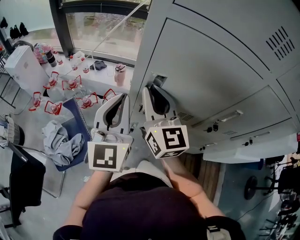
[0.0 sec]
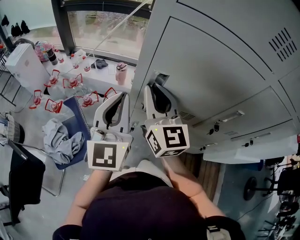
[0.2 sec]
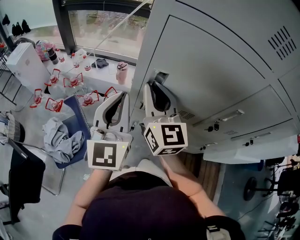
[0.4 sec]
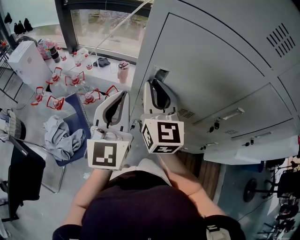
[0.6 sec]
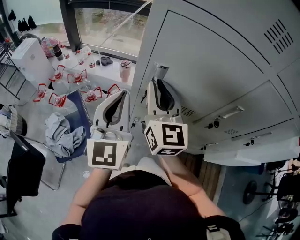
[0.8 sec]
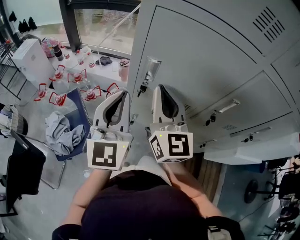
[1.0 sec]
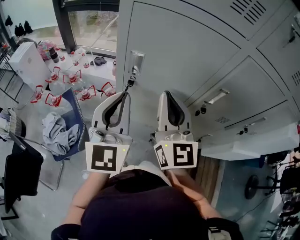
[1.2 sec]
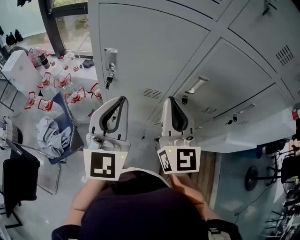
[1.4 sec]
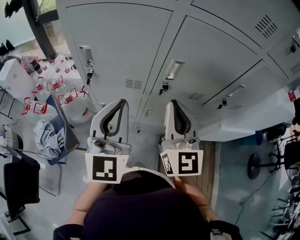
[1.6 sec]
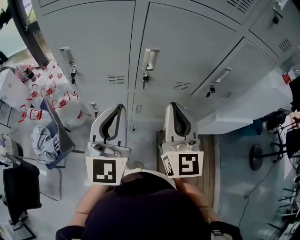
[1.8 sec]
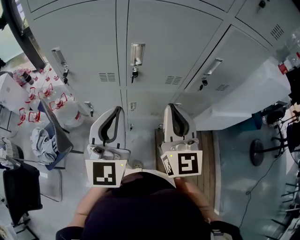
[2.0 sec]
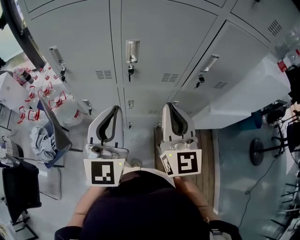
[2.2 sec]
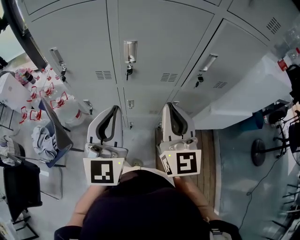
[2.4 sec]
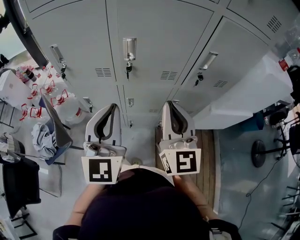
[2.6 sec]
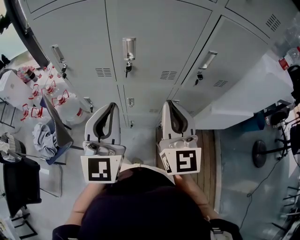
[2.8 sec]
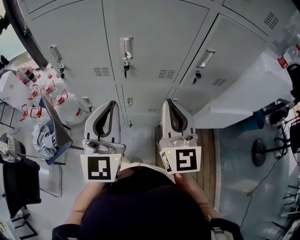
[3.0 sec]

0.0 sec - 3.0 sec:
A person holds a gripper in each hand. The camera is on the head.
0.0 sec - 1.6 sec: Both grippers move to the right and backward, about 30 cm.
1.6 sec - 3.0 sec: The two grippers go about 15 cm to the right and backward.

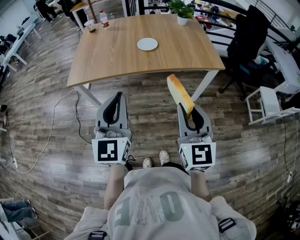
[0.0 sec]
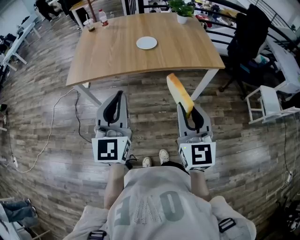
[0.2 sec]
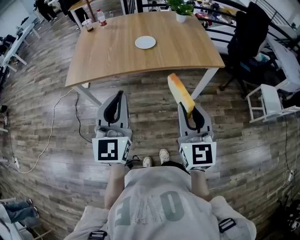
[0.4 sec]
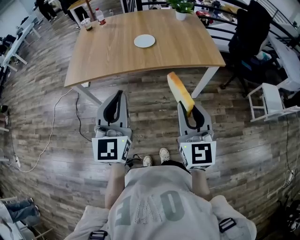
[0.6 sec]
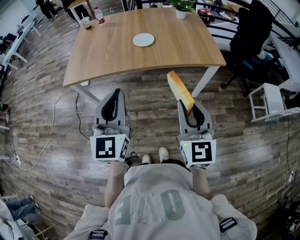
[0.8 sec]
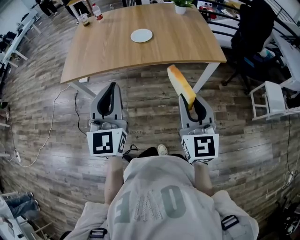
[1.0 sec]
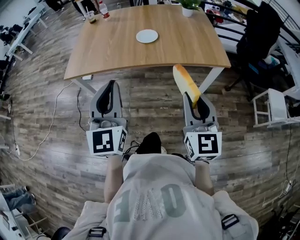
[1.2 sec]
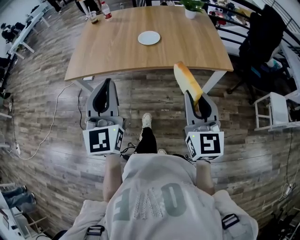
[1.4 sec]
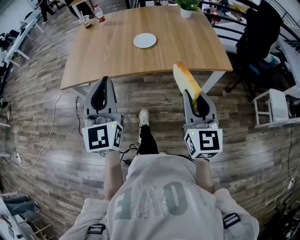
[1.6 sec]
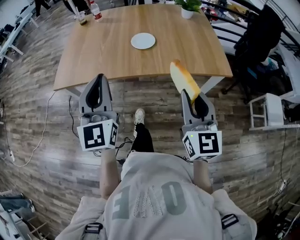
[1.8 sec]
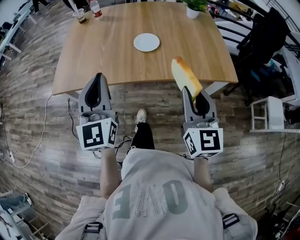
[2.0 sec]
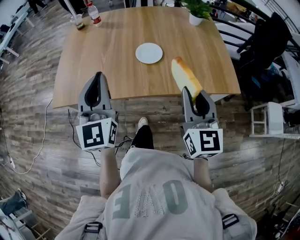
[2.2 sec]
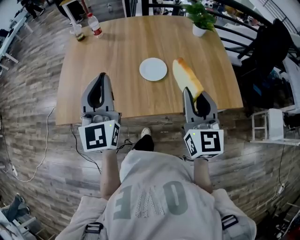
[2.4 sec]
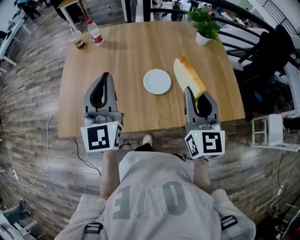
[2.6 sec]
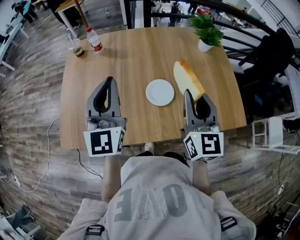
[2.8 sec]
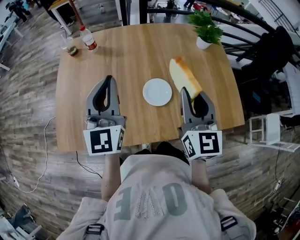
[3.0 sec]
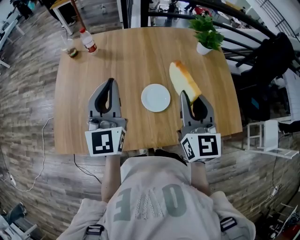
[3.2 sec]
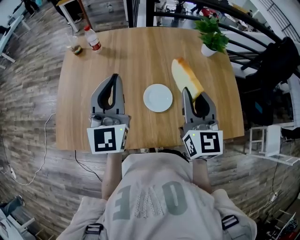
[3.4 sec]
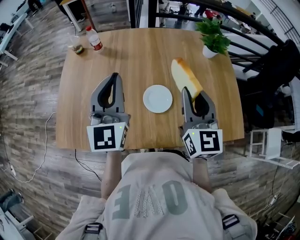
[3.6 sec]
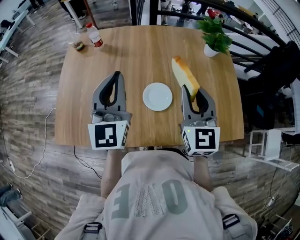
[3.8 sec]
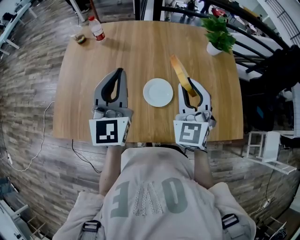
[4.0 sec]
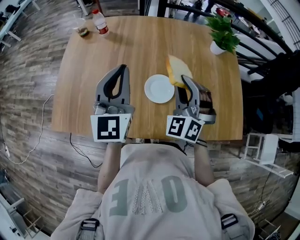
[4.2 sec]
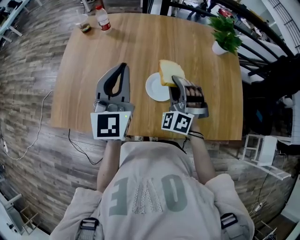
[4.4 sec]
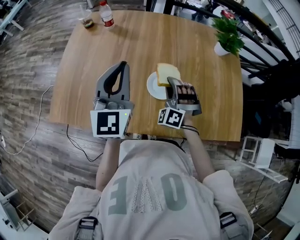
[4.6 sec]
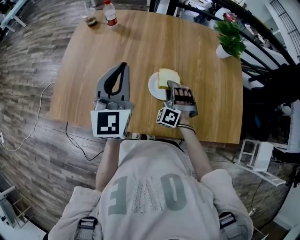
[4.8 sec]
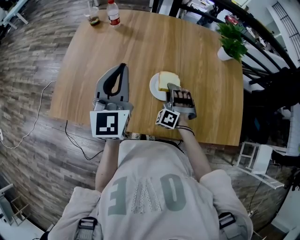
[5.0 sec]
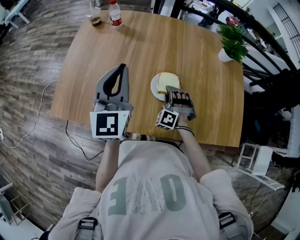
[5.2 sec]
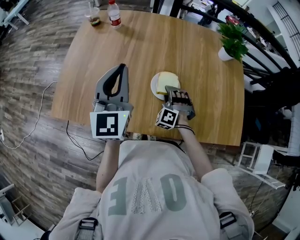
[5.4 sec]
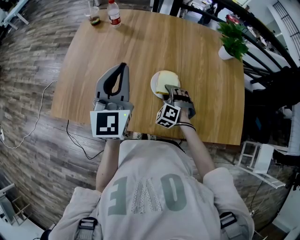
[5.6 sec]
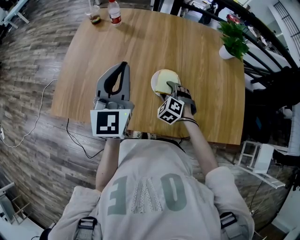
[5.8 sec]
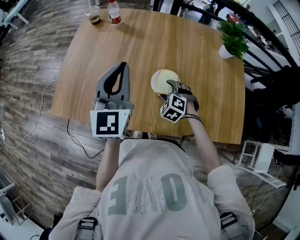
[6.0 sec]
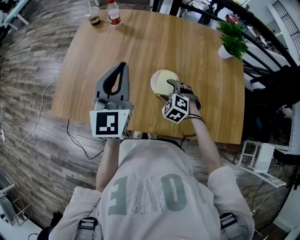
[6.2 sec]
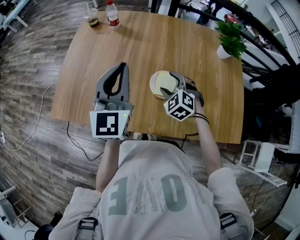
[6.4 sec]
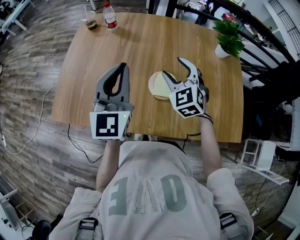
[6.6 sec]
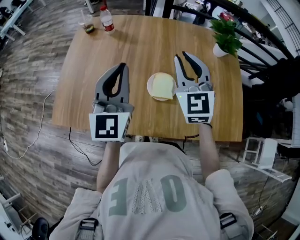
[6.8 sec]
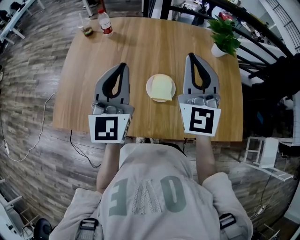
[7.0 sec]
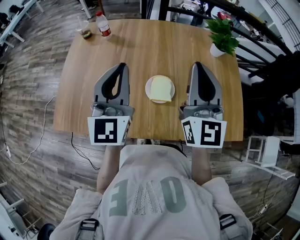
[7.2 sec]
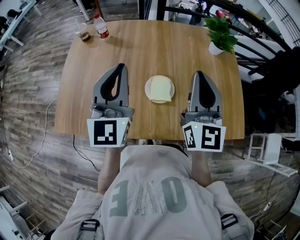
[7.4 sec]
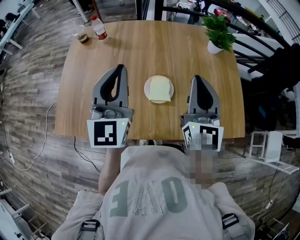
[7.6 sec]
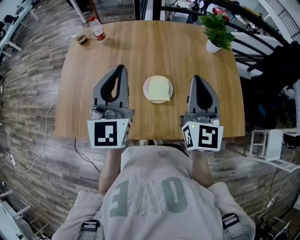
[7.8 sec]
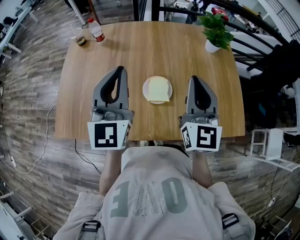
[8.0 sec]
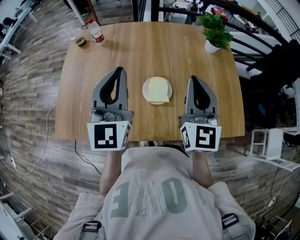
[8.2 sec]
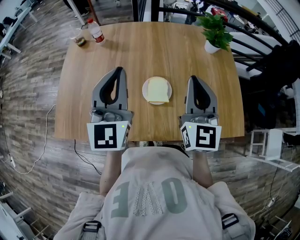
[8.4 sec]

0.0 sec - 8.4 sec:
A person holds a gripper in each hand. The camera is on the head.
0.0 sec - 1.4 sec: The right gripper heads forward and to the right, covering about 10 cm. The left gripper shifts about 5 cm forward.
1.4 sec - 2.8 sec: The pair of grippers is taken forward, approximately 40 cm.
2.8 sec - 4.2 sec: The right gripper moves forward and downward, approximately 10 cm, and twists roughly 60 degrees counterclockwise, seen from behind, while the left gripper changes place by about 5 cm.
4.2 sec - 5.6 sec: The right gripper moves downward, some 20 cm, and changes its angle by about 30 degrees.
5.6 sec - 7.0 sec: The right gripper heads upward, covering approximately 35 cm, angles its fingers upward, by some 50 degrees, and closes its fingers.
7.0 sec - 8.4 sec: The right gripper shifts about 5 cm to the right and downward.

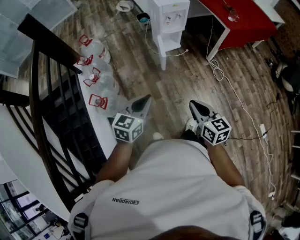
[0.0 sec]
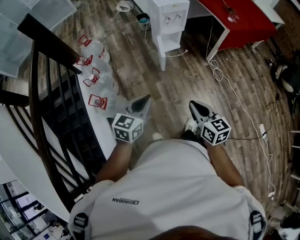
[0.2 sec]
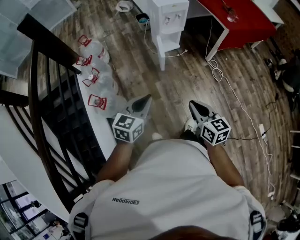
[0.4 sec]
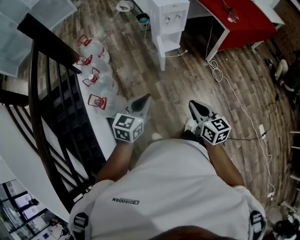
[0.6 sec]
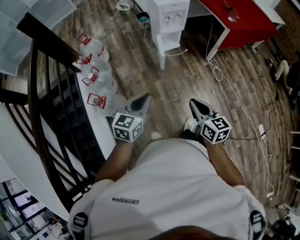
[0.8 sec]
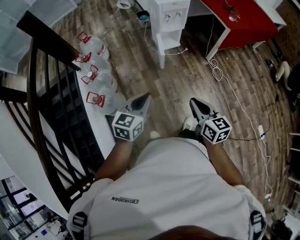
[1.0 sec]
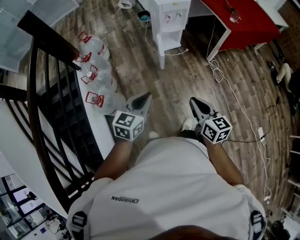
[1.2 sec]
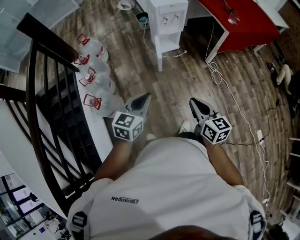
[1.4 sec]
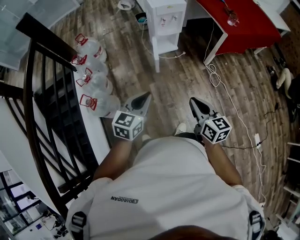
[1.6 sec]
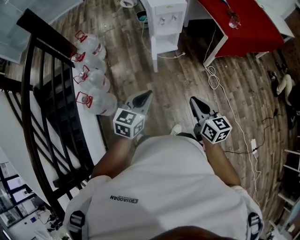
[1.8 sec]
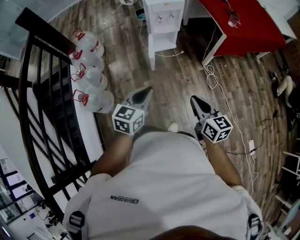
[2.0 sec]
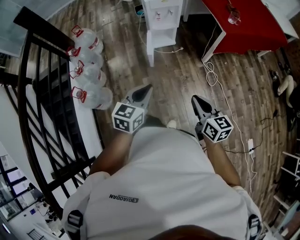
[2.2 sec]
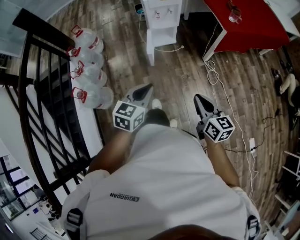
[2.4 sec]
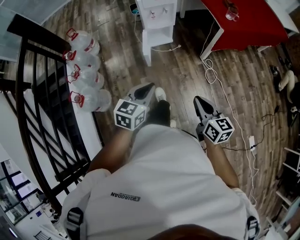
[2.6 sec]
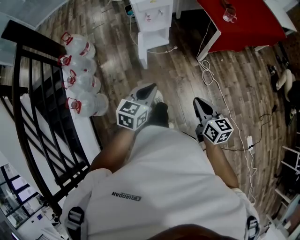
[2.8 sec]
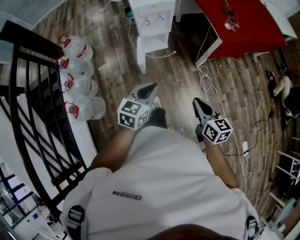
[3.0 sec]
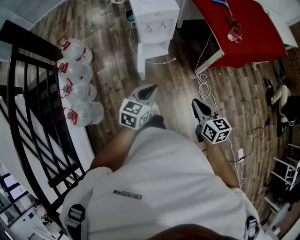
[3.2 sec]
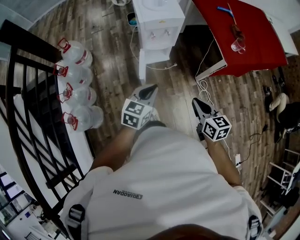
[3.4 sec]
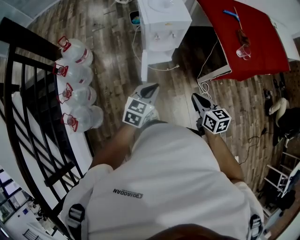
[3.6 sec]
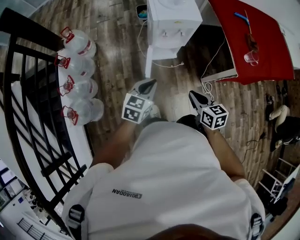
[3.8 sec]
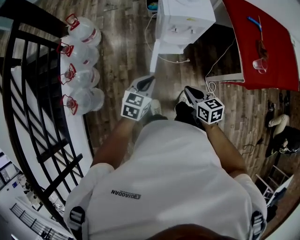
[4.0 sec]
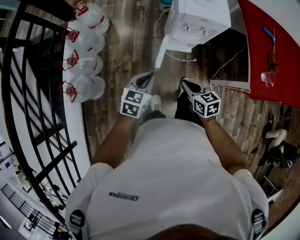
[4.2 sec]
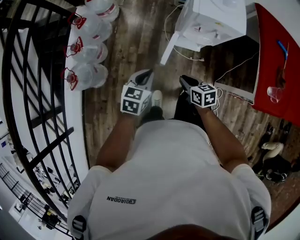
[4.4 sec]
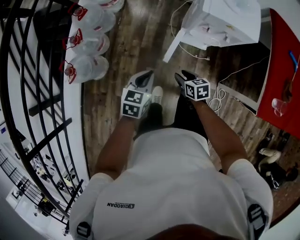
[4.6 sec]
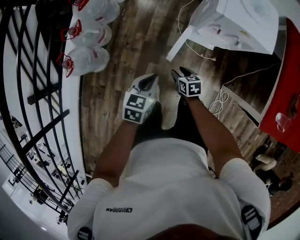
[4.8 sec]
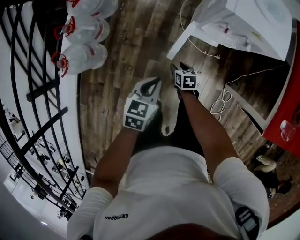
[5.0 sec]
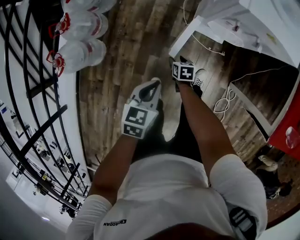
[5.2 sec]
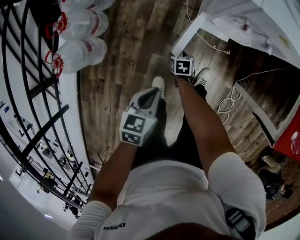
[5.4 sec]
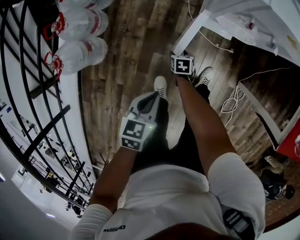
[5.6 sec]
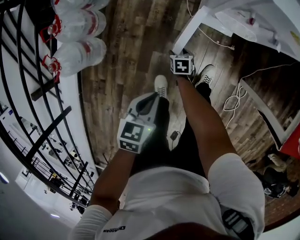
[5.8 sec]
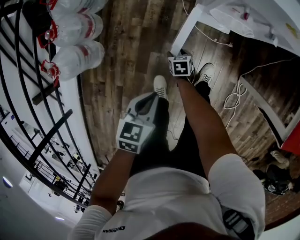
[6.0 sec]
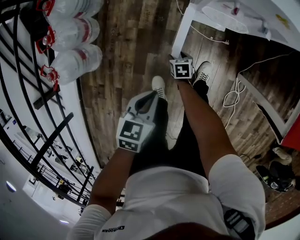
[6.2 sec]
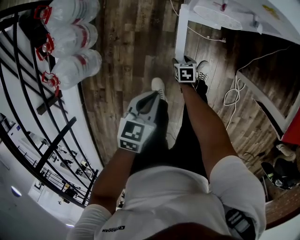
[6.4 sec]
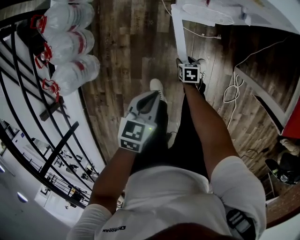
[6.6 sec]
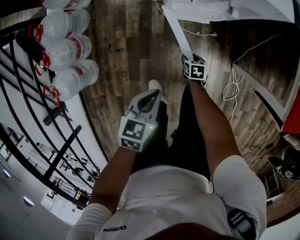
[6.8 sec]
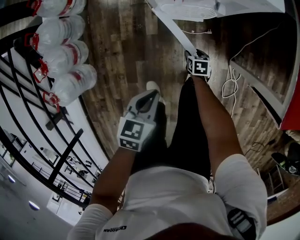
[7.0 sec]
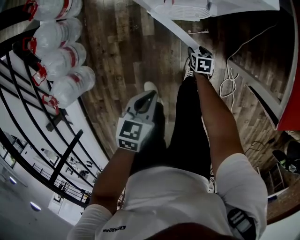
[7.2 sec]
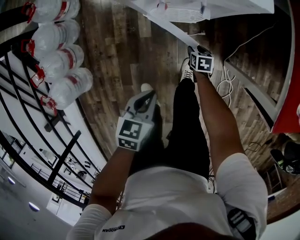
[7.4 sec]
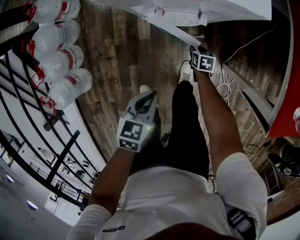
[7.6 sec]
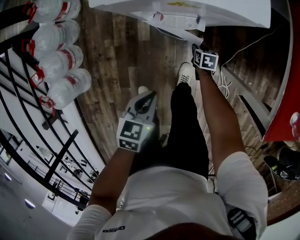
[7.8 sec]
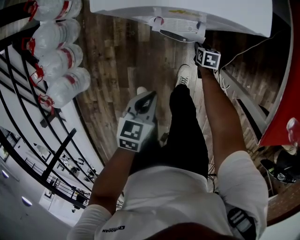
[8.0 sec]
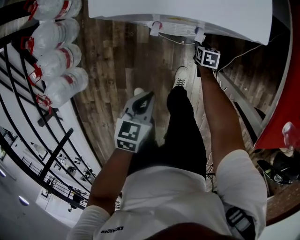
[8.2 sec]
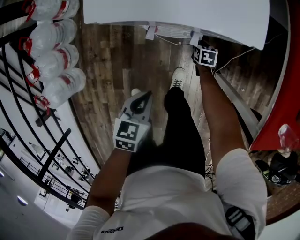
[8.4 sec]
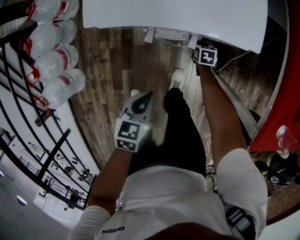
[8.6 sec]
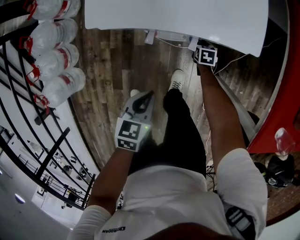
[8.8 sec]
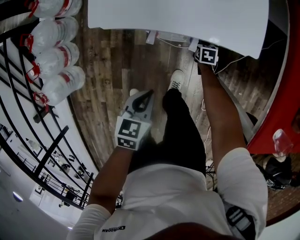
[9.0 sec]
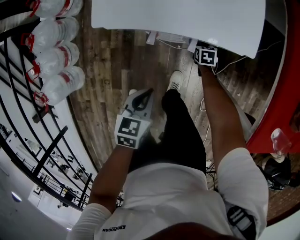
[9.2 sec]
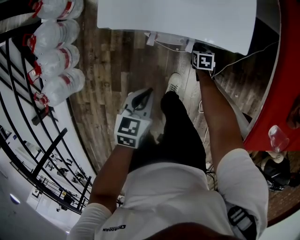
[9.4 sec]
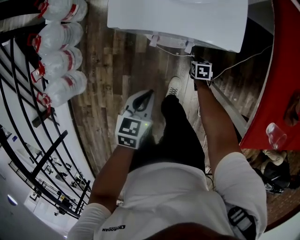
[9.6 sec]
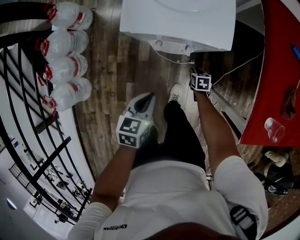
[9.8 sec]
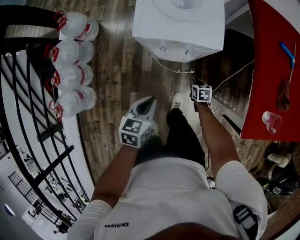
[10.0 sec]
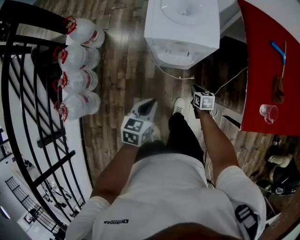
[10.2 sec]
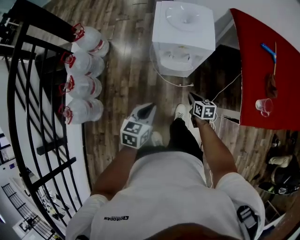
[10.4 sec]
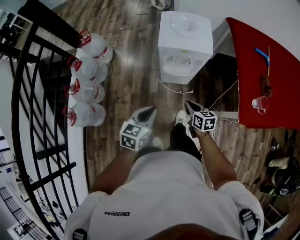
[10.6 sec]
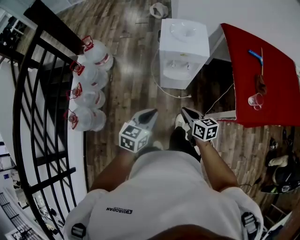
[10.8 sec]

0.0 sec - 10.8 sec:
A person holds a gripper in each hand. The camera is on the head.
0.0 sec - 1.6 sec: The two grippers go some 10 cm to the right and forward.
1.6 sec - 3.0 sec: Both grippers travel together forward and to the right, about 25 cm.
3.0 sec - 4.6 sec: The left gripper ends up about 30 cm from where it was, and swivels roughly 40 degrees. The right gripper shifts by some 50 cm, turns by some 50 degrees, and opens.
4.6 sec - 6.2 sec: The left gripper goes some 15 cm downward. Meanwhile the right gripper is displaced downward by roughly 35 cm, and opens its fingers.
6.2 sec - 7.8 sec: The right gripper heads to the right and forward, covering some 30 cm, and turns by roughly 20 degrees, while the left gripper heads to the right and forward, covering some 15 cm.
7.8 sec - 9.2 sec: The right gripper moves forward, some 10 cm. The left gripper heads forward, covering about 5 cm.
9.2 sec - 10.8 sec: The right gripper is displaced upward and backward by about 60 cm, angles its fingers upward, by approximately 40 degrees, and closes, while the left gripper shifts approximately 30 cm upward and backward, and swivels some 30 degrees.

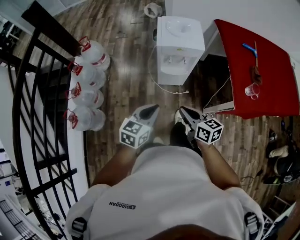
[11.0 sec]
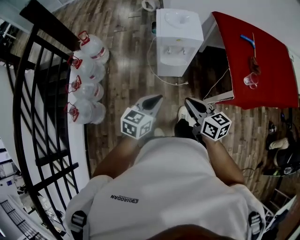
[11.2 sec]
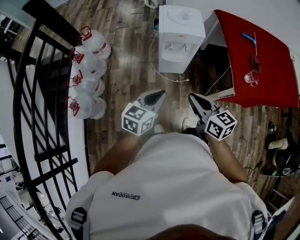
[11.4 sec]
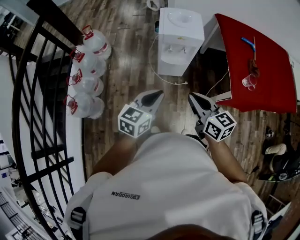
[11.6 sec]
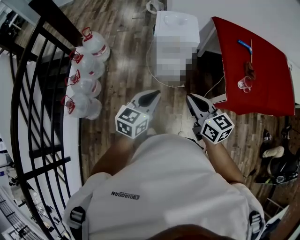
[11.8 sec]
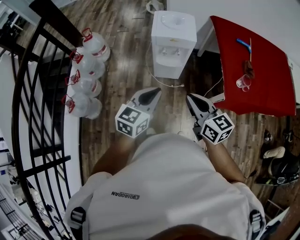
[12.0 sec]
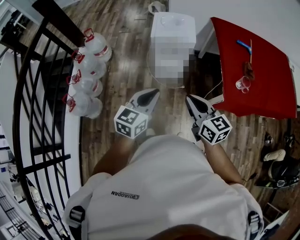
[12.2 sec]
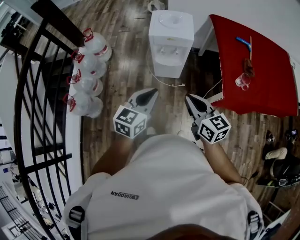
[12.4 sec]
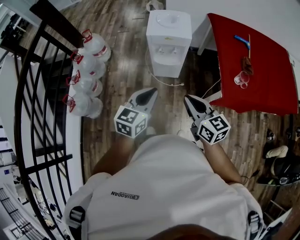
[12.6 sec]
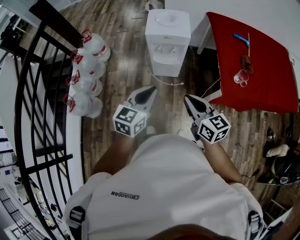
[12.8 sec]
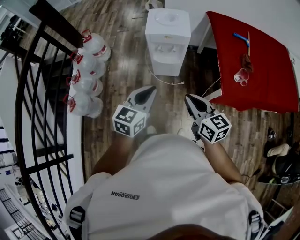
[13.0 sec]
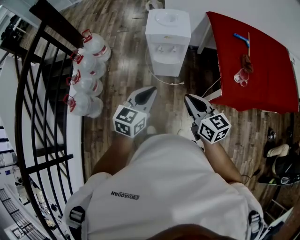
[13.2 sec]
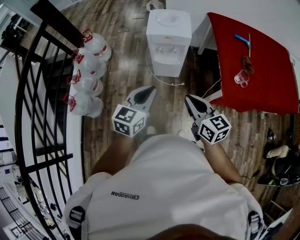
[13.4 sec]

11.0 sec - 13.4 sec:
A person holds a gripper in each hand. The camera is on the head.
11.0 sec - 12.2 sec: Both grippers travel together upward and to the right, some 15 cm.
12.2 sec - 13.4 sec: The grippers make only small movements.
